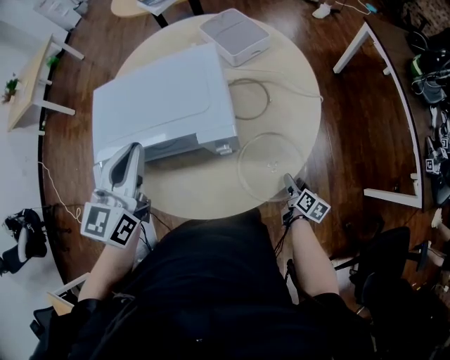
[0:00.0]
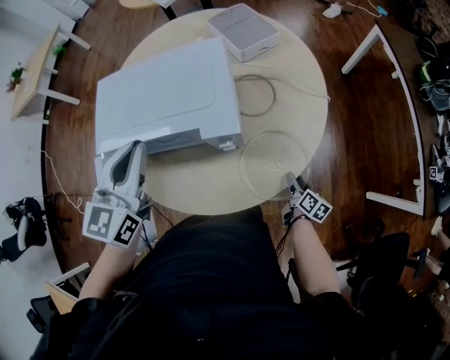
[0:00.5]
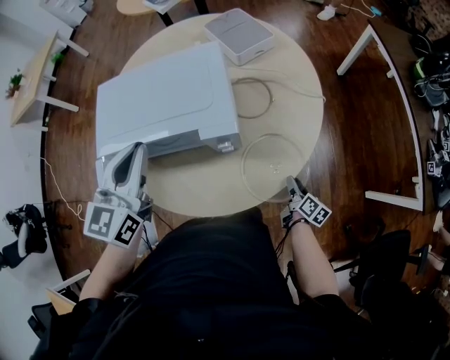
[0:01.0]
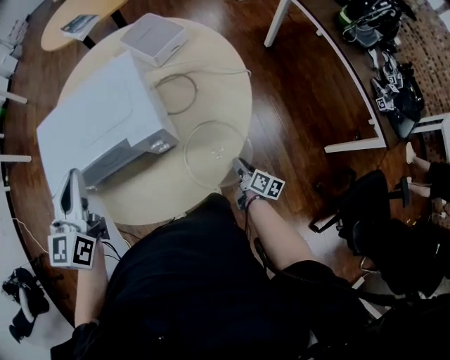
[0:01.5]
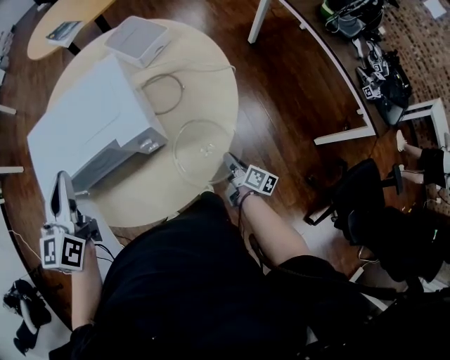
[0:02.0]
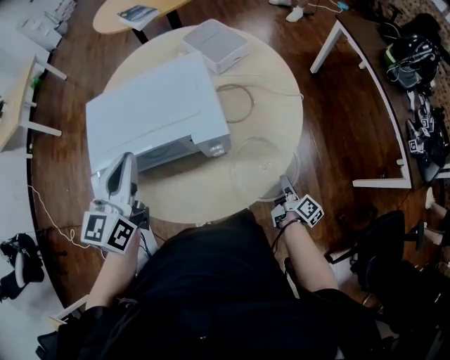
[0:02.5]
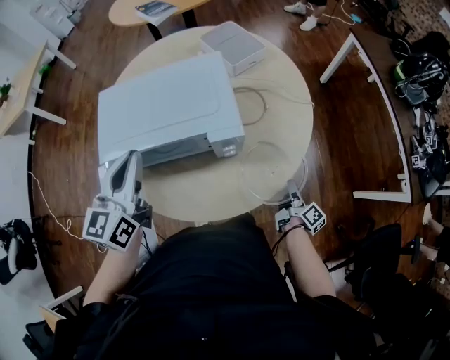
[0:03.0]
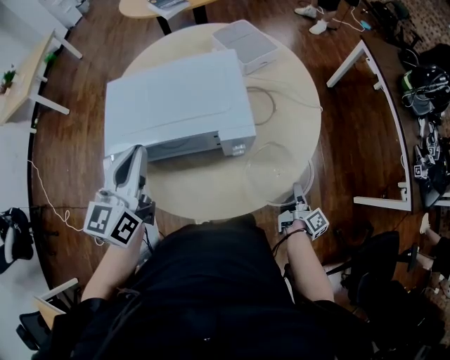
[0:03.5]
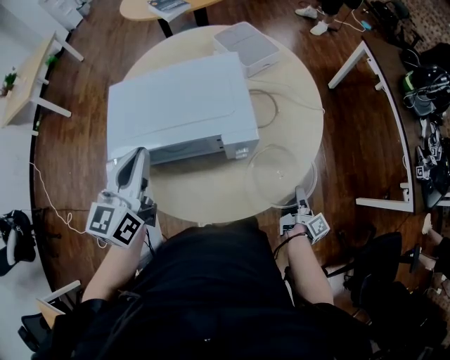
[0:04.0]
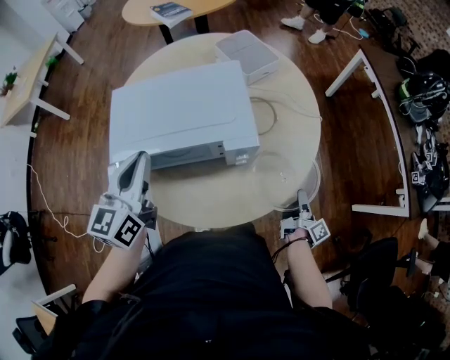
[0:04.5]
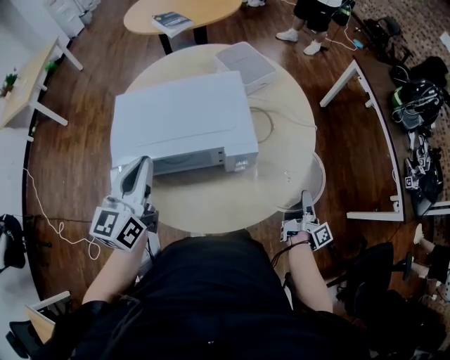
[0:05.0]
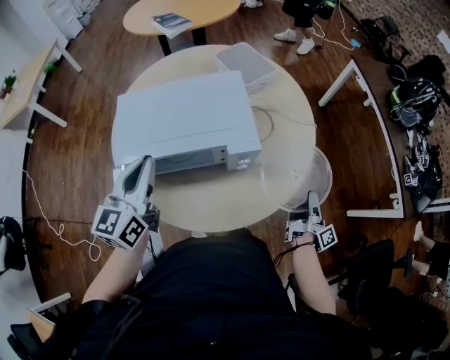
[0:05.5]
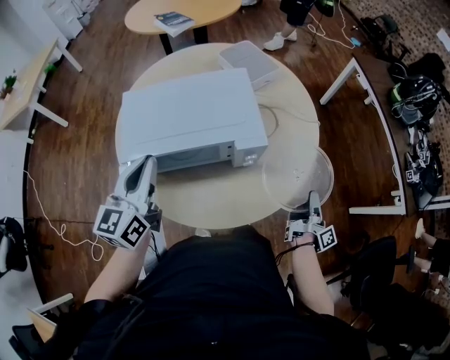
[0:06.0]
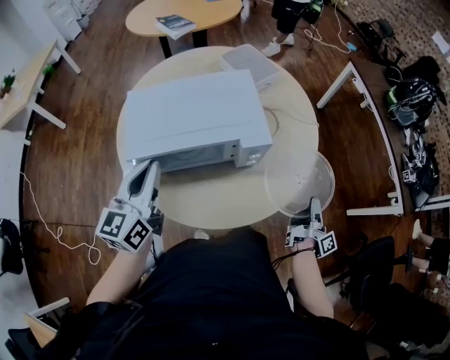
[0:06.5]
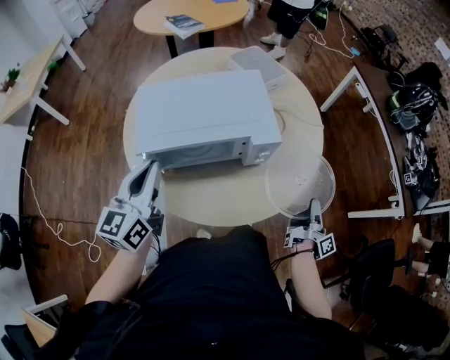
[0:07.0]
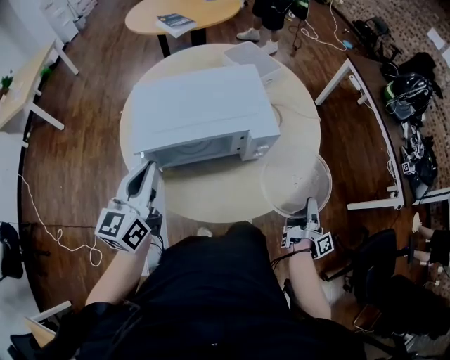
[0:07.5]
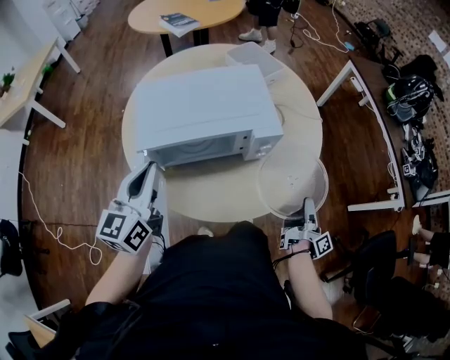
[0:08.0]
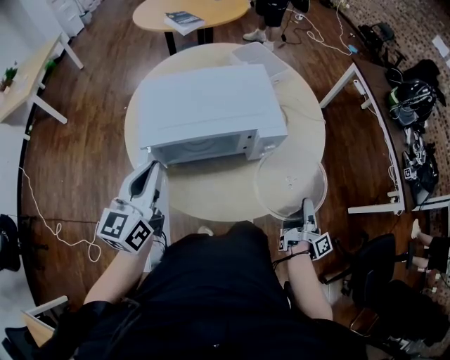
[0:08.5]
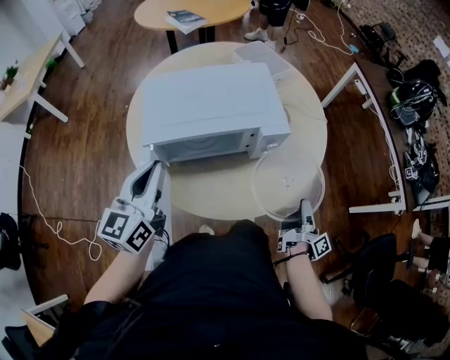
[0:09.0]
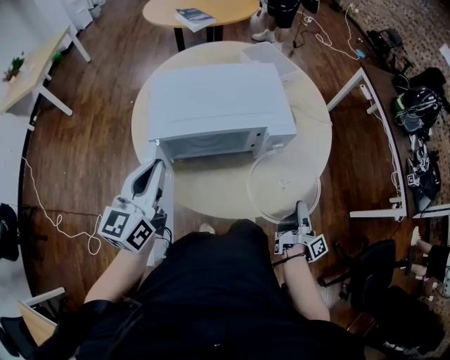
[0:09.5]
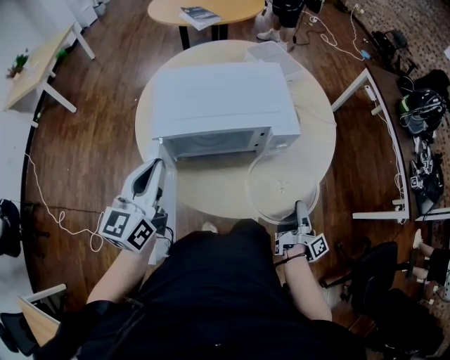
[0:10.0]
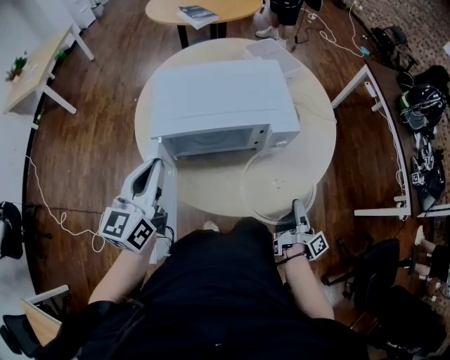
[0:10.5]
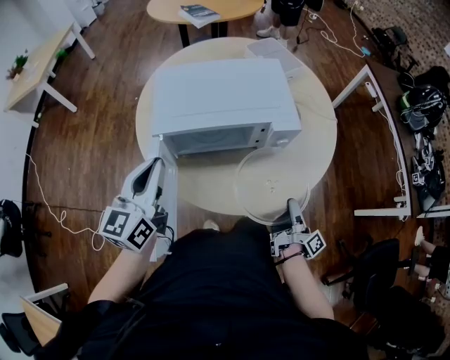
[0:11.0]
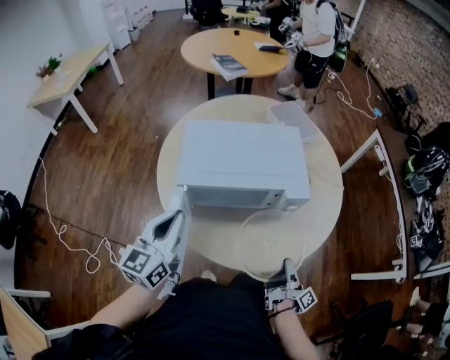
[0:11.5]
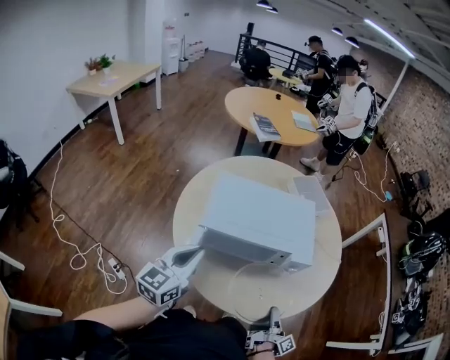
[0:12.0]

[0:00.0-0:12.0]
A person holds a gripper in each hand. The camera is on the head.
0:06.0 to 0:08.0: The left gripper shifts by about 5 cm.

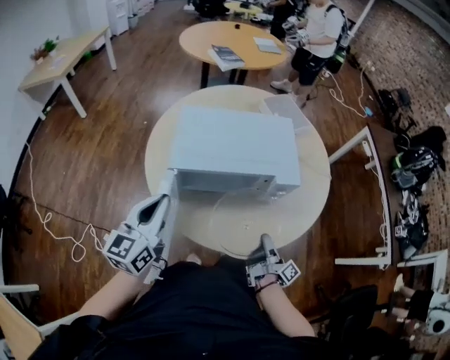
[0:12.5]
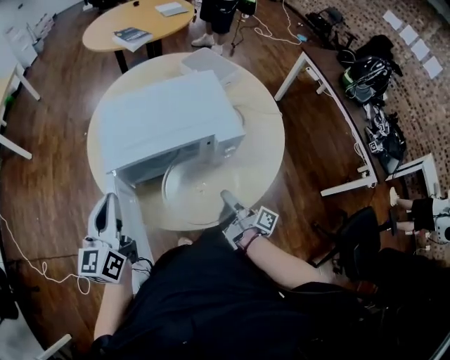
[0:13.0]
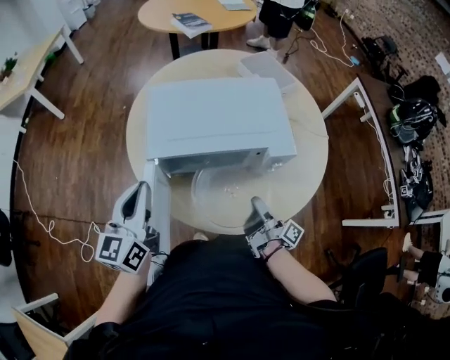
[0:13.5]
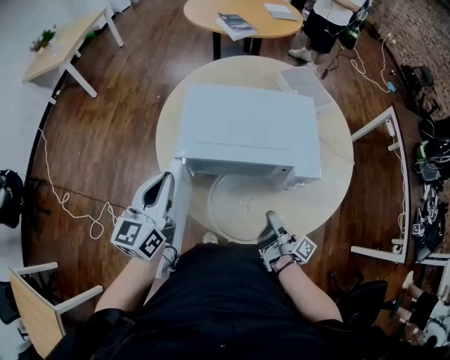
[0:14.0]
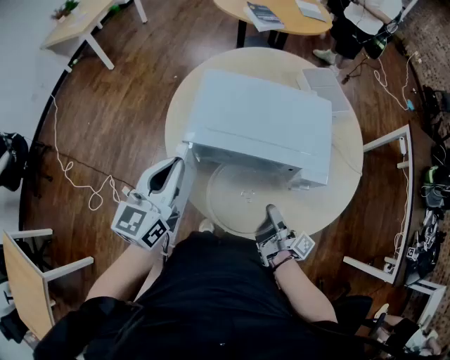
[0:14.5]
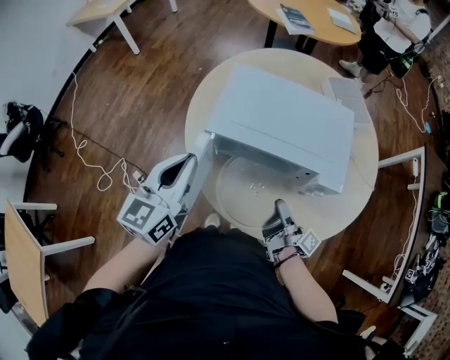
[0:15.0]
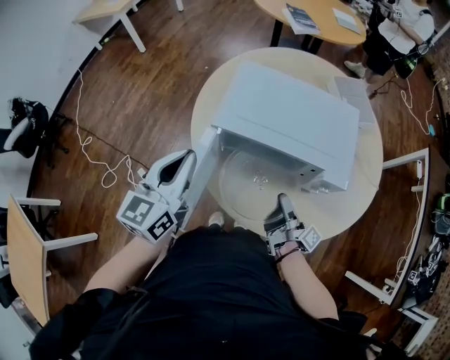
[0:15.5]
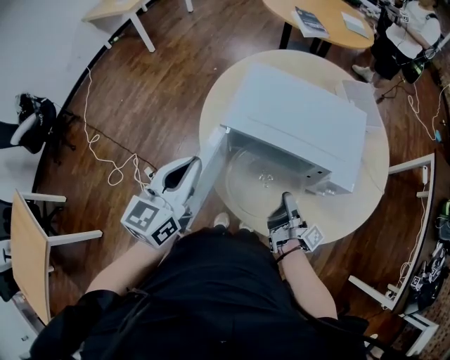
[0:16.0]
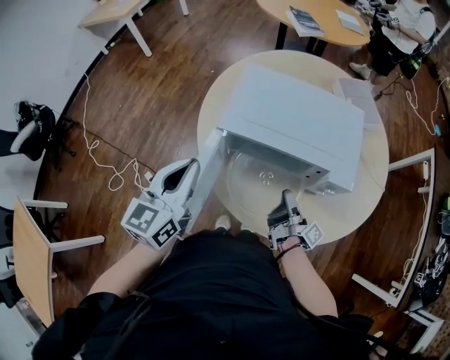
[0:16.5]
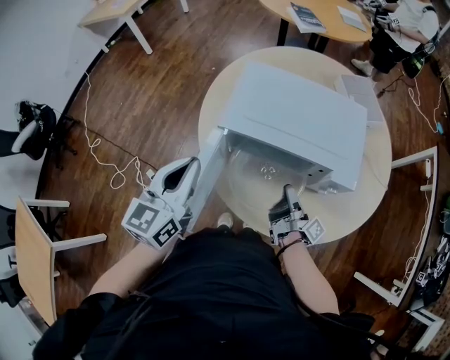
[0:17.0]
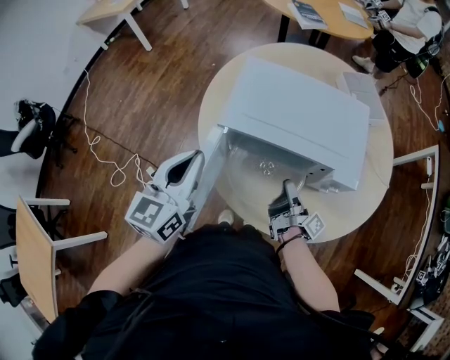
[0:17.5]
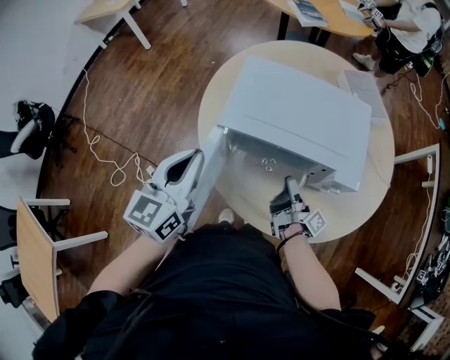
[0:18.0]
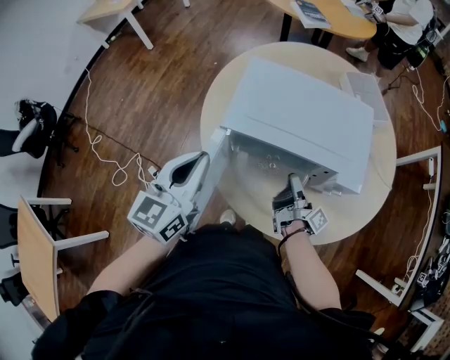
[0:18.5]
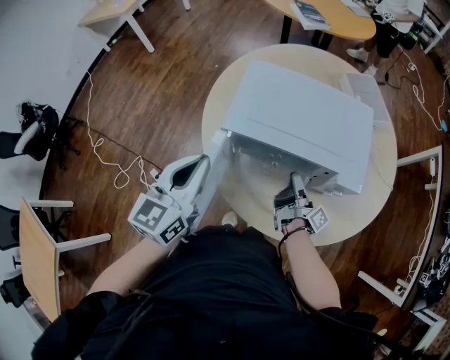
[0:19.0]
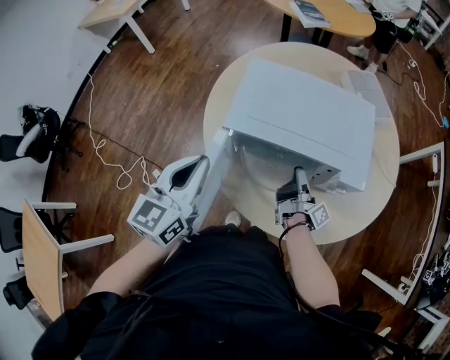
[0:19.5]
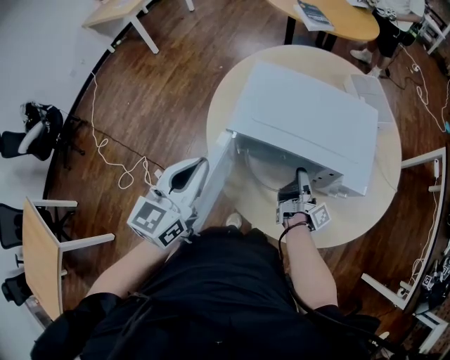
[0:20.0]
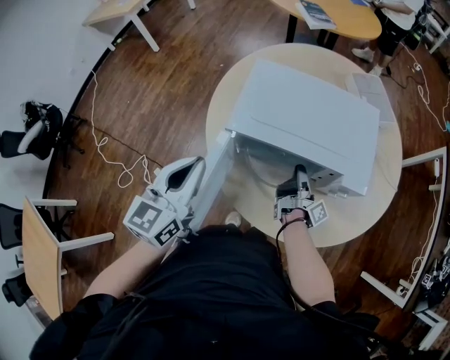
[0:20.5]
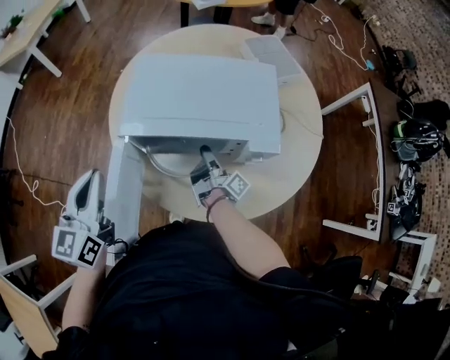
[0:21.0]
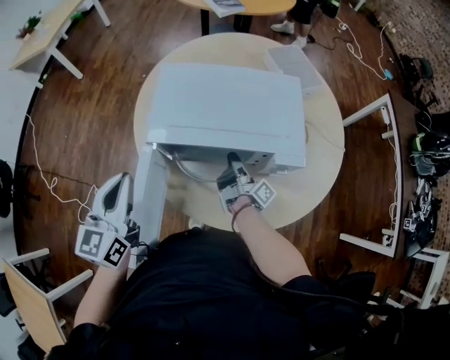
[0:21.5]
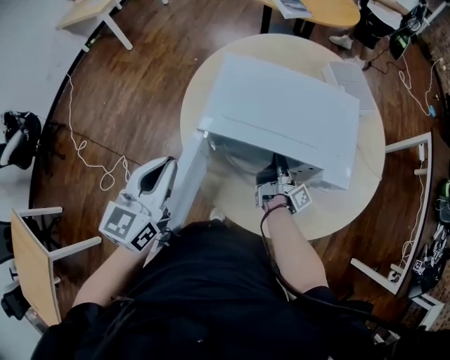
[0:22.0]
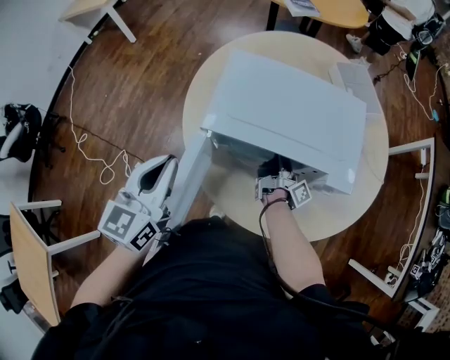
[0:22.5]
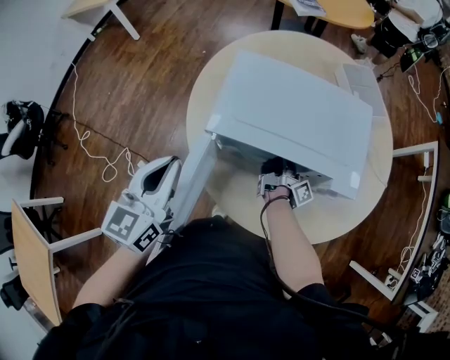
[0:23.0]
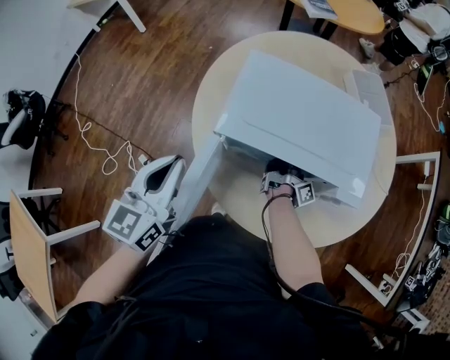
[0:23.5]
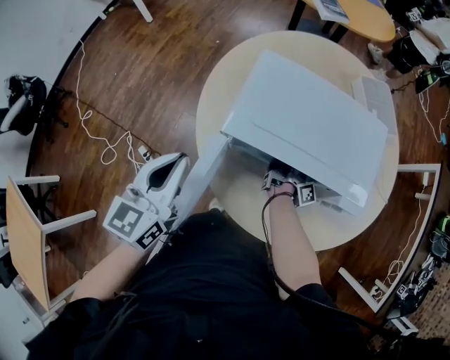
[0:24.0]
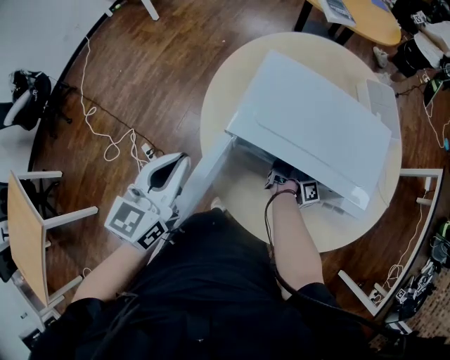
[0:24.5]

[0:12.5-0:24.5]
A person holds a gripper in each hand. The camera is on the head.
0:12.5 to 0:14.5: The left gripper ends up about 5 cm from where it was.
0:14.5 to 0:16.5: The left gripper shifts by approximately 5 cm.

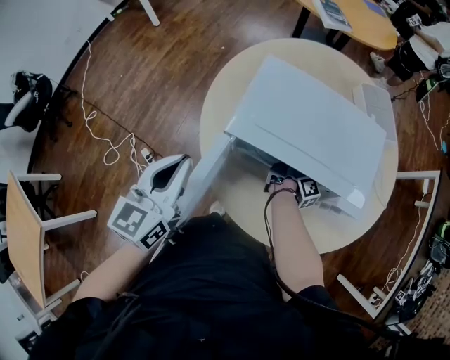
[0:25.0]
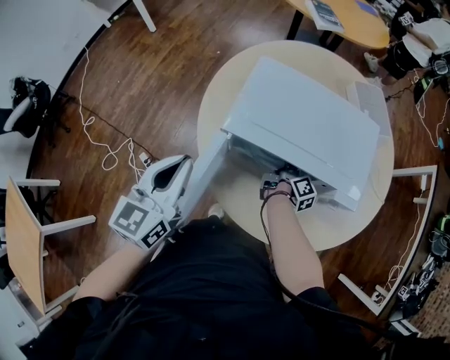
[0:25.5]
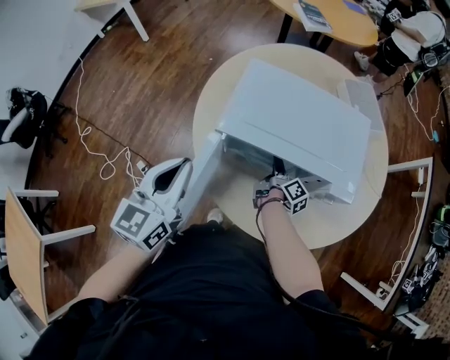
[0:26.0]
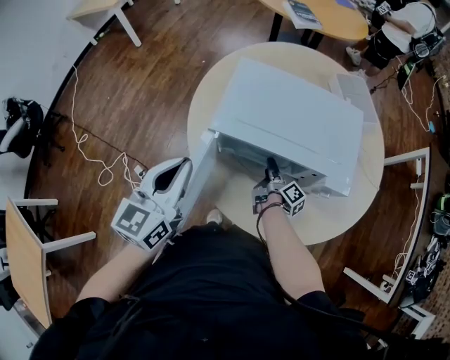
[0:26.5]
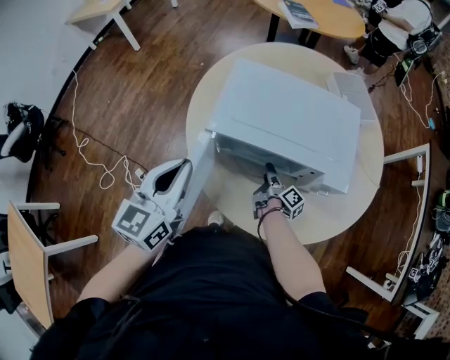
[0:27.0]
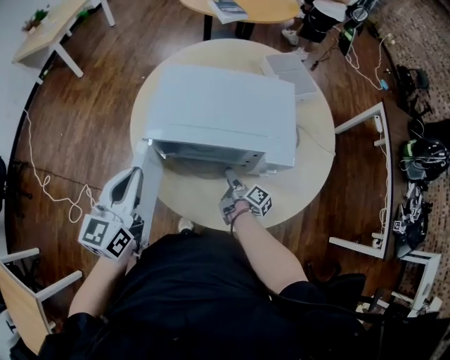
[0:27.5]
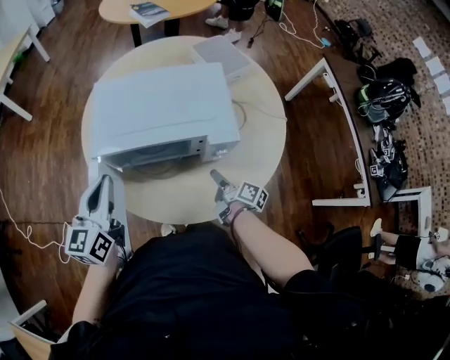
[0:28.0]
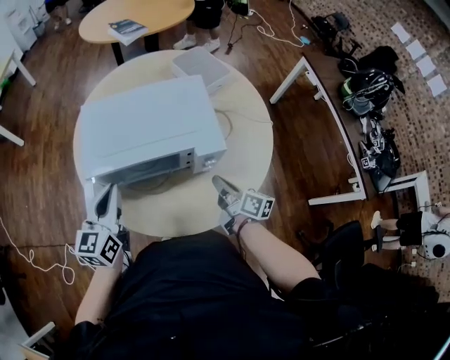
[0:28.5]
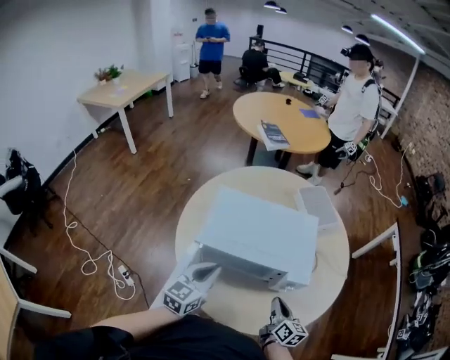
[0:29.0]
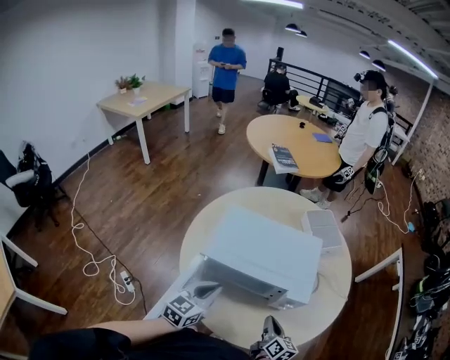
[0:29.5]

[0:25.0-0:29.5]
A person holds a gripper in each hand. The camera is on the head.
0:27.0 to 0:29.5: The left gripper shifts by roughly 15 cm.
